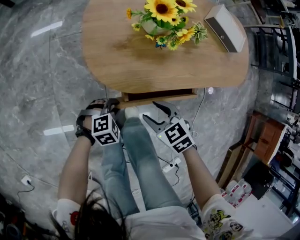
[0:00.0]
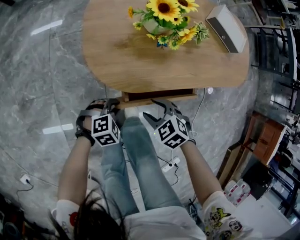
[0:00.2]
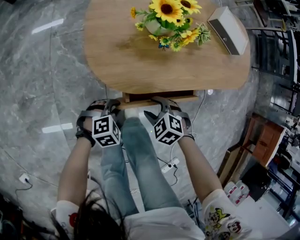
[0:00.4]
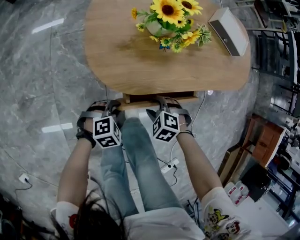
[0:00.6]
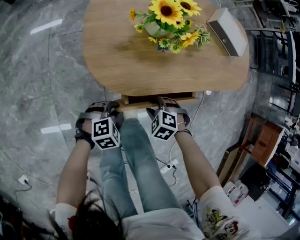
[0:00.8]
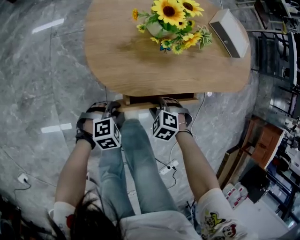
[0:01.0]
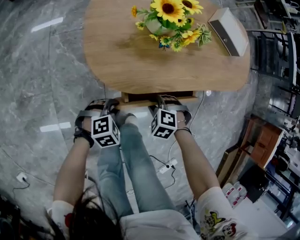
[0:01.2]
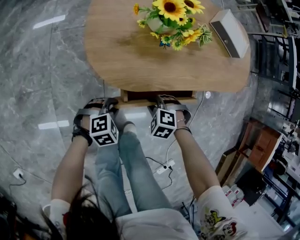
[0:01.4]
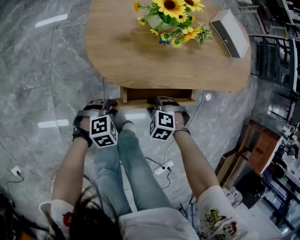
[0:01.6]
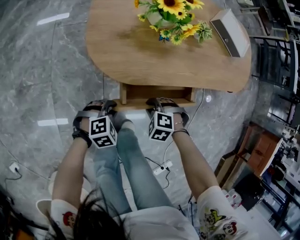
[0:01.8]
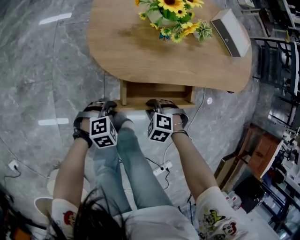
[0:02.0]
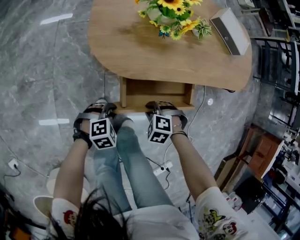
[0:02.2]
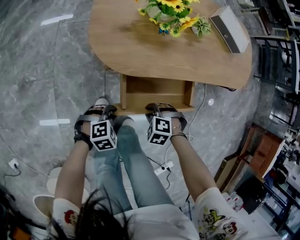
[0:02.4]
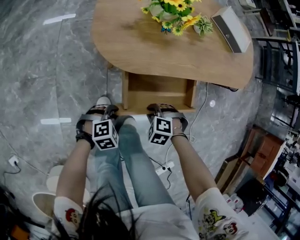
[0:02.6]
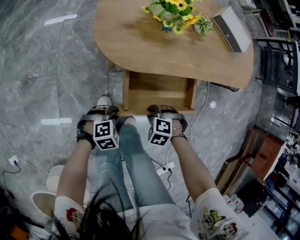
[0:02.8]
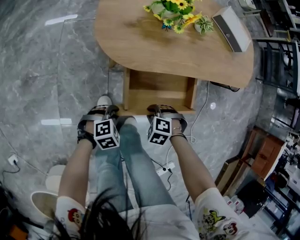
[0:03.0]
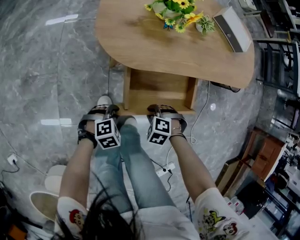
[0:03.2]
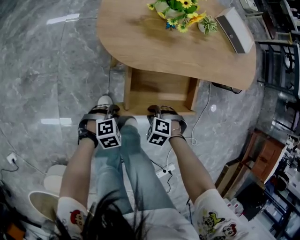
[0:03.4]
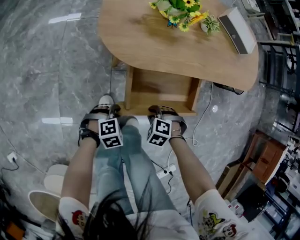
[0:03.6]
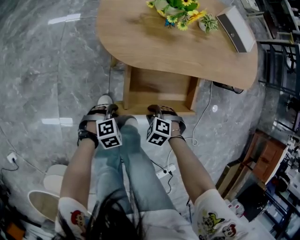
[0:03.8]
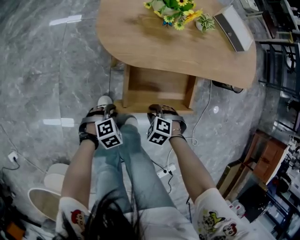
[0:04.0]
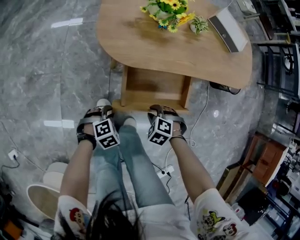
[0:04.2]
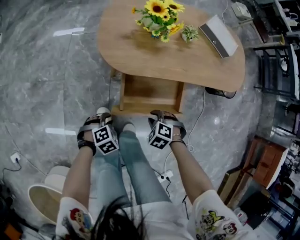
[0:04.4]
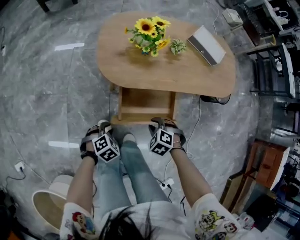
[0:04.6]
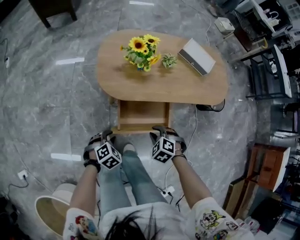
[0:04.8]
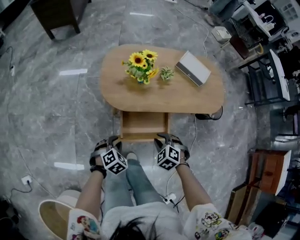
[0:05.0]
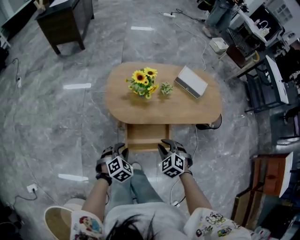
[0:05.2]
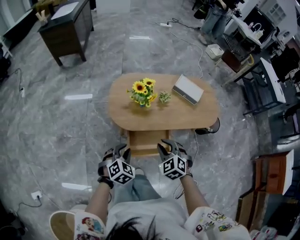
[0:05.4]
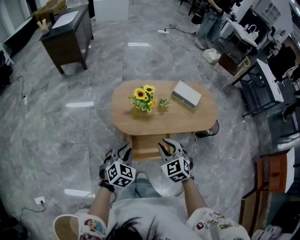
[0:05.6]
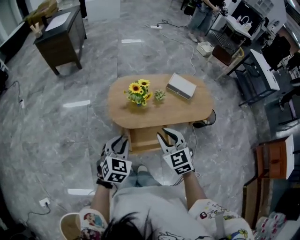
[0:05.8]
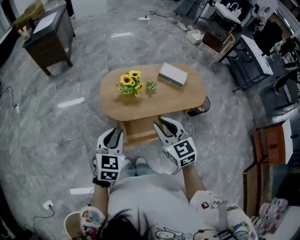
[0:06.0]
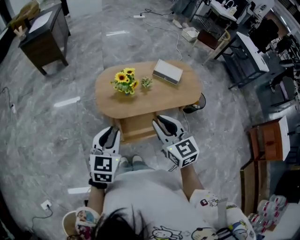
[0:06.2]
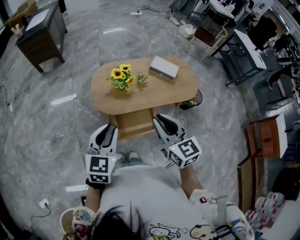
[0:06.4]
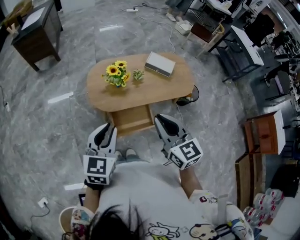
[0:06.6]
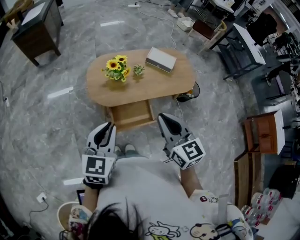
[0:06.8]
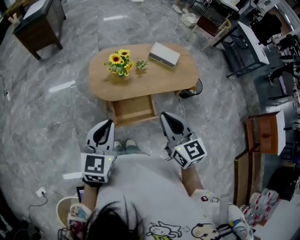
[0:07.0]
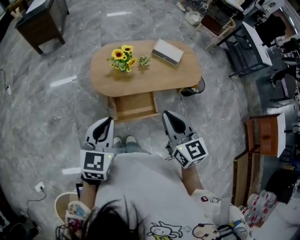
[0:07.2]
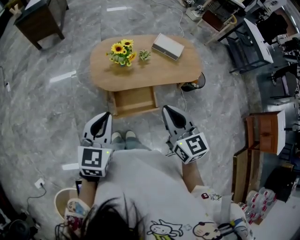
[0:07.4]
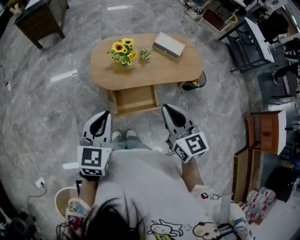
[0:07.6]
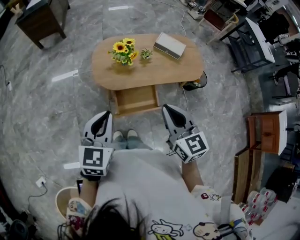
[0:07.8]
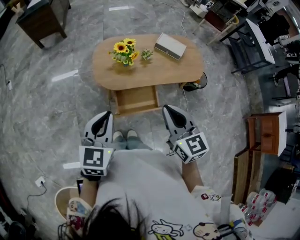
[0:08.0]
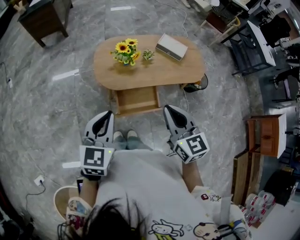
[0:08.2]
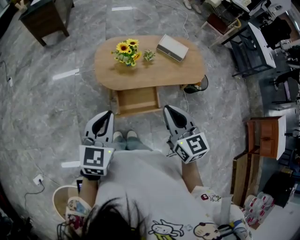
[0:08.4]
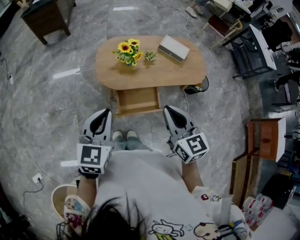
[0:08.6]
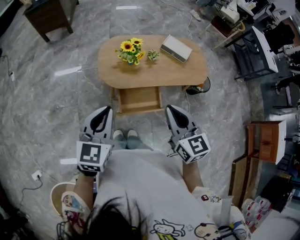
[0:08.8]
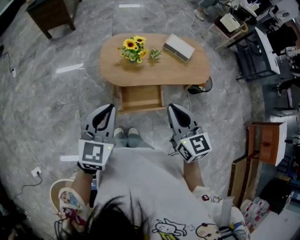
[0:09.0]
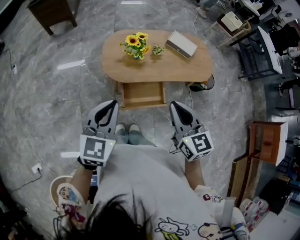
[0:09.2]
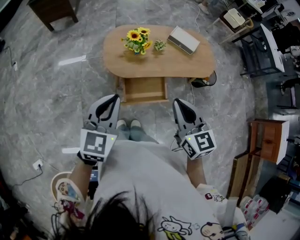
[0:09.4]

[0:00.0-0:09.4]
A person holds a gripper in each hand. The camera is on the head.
0:00.0 to 0:01.6: The right gripper shifts about 10 cm downward, turns by roughly 50 degrees, and closes its fingers.
0:01.6 to 0:03.2: The left gripper ends up approximately 10 cm from where it was, while the right gripper ends up roughly 10 cm from where it was.
0:03.2 to 0:04.8: Both grippers move upward, roughly 15 cm. The left gripper rotates about 20 degrees; the right gripper swivels about 20 degrees.
0:04.8 to 0:06.2: Both grippers travel together upward, roughly 40 cm. The right gripper points its fingers about 50 degrees further upward. The left gripper angles its fingers upward, by roughly 40 degrees.
0:06.2 to 0:07.8: The right gripper is displaced backward by approximately 5 cm.
0:07.8 to 0:09.4: There are only small adjustments of the grippers.

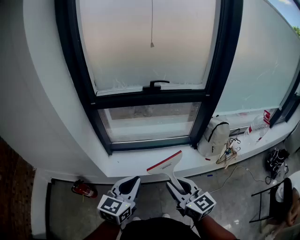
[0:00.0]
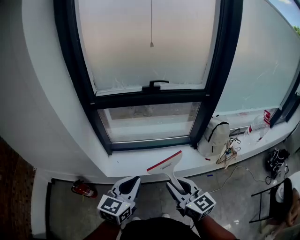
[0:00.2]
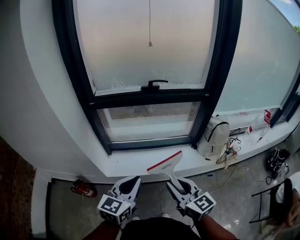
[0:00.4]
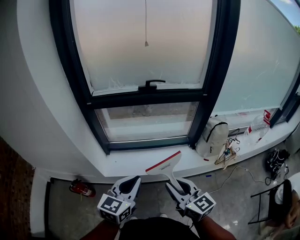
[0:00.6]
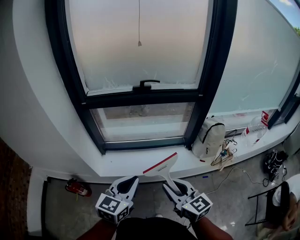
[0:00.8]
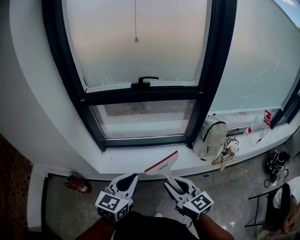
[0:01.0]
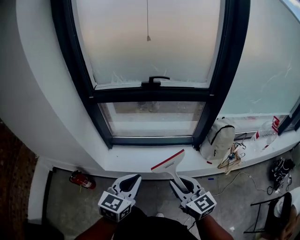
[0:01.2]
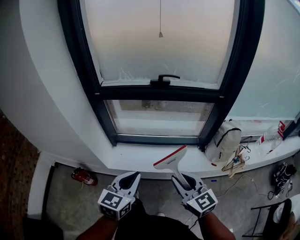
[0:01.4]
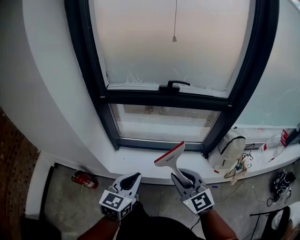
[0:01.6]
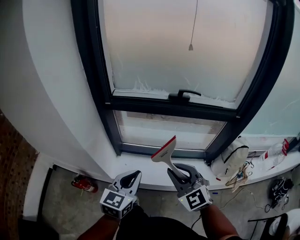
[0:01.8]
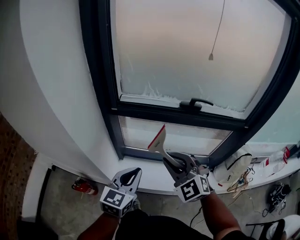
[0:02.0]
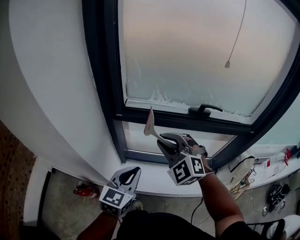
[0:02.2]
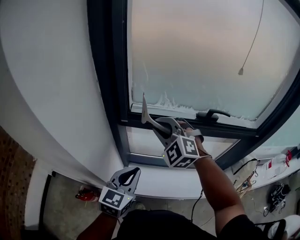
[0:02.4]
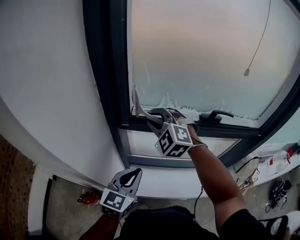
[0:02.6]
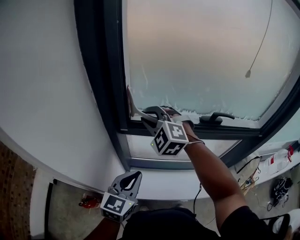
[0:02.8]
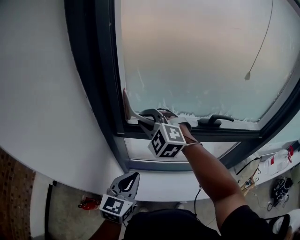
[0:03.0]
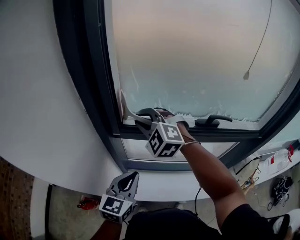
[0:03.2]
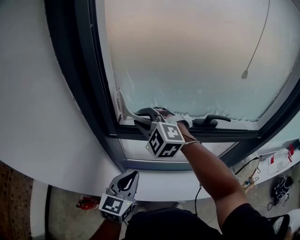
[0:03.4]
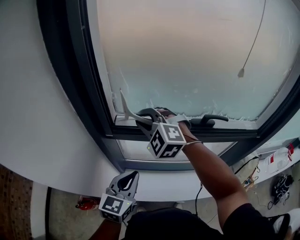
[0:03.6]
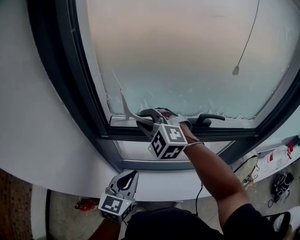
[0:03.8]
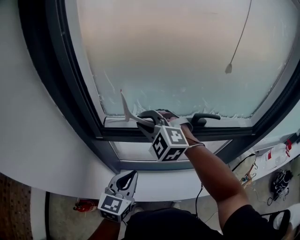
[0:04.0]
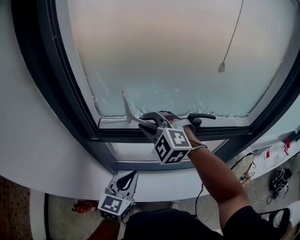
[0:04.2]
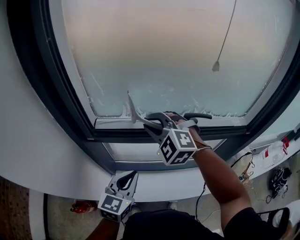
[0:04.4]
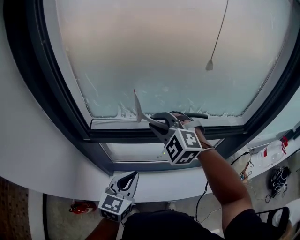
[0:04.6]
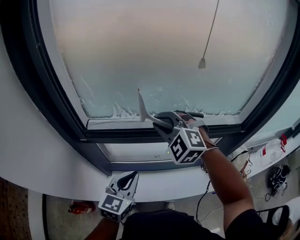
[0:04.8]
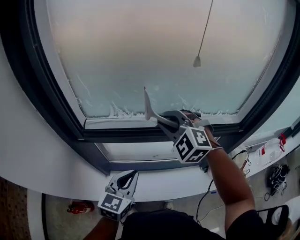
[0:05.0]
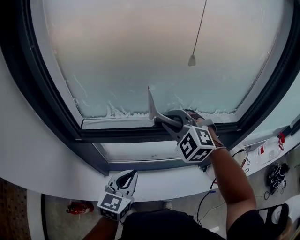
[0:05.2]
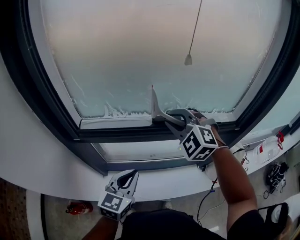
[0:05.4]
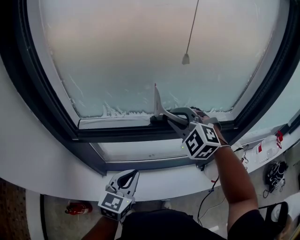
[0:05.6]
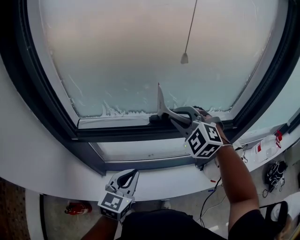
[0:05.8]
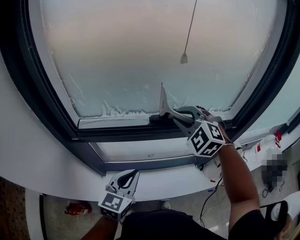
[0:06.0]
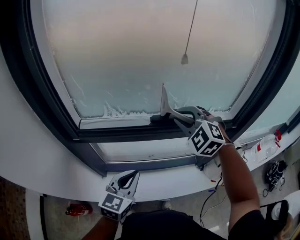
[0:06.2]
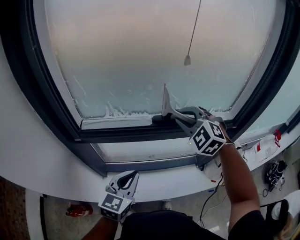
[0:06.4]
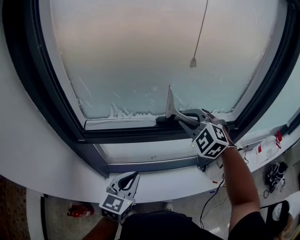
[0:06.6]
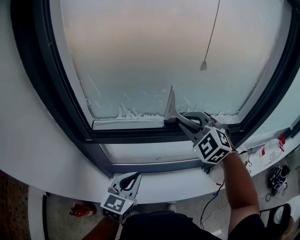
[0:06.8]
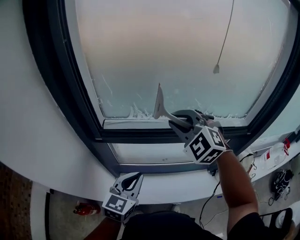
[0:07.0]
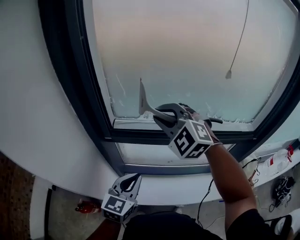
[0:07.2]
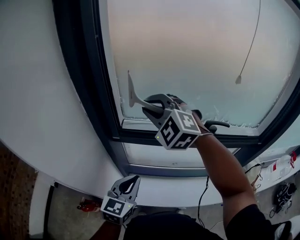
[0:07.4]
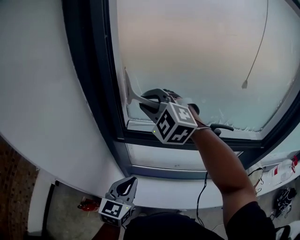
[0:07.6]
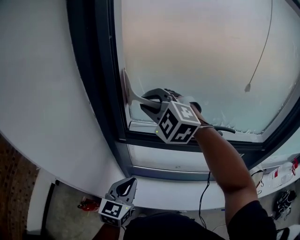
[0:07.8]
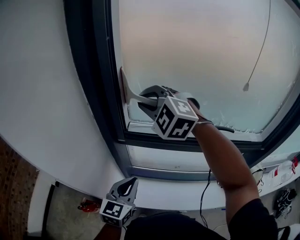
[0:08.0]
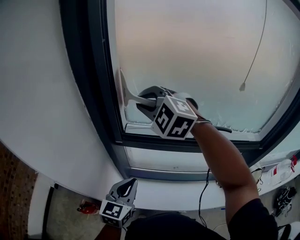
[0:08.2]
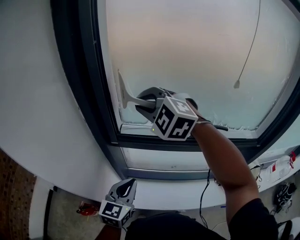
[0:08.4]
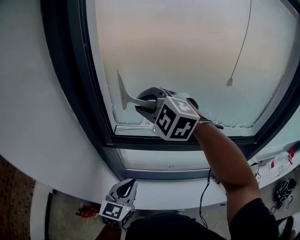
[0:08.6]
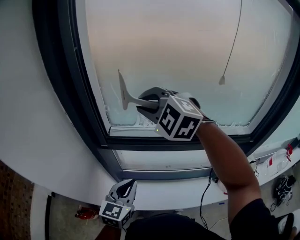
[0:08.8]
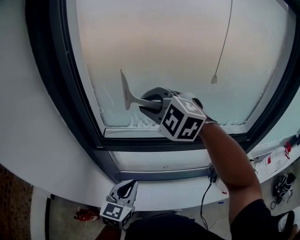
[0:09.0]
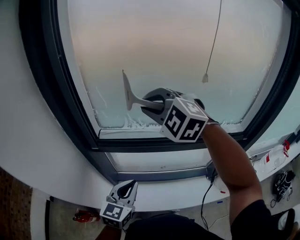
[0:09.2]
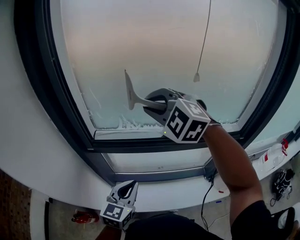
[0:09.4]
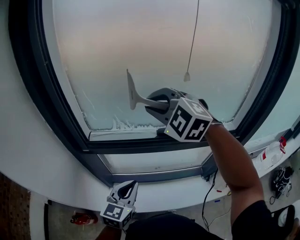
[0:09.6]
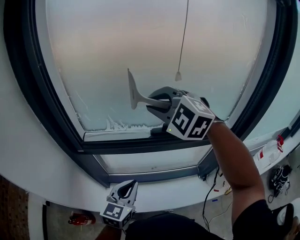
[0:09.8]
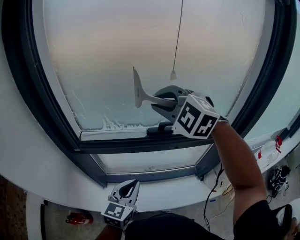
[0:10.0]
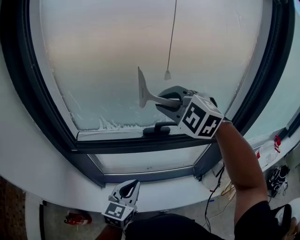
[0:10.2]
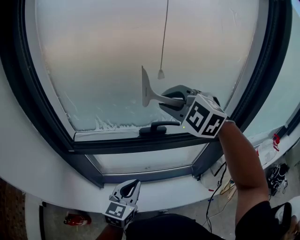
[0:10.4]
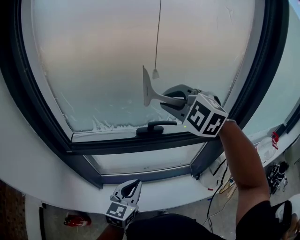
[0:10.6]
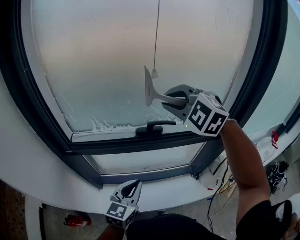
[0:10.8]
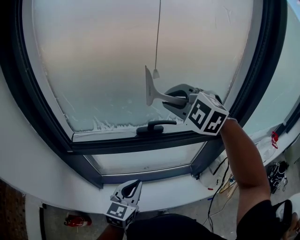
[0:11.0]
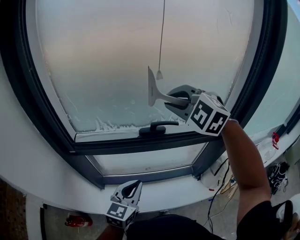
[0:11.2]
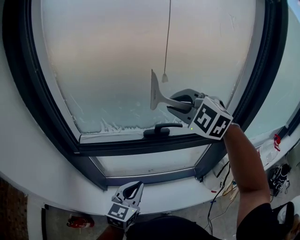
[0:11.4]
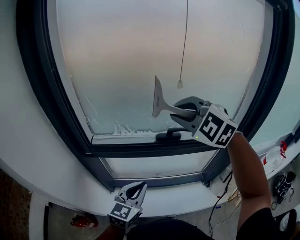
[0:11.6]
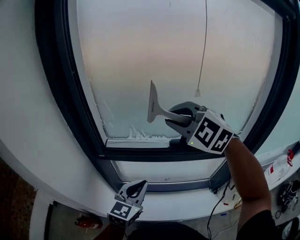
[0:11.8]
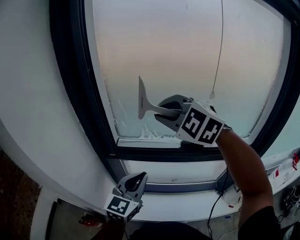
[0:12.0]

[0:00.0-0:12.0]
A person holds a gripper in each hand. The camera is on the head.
0:00.0 to 0:01.6: Both grippers move forward, some 10 cm. The right gripper swivels some 30 degrees.
0:01.6 to 0:03.0: The left gripper goes approximately 35 cm forward and to the left. The right gripper heads forward and to the left, covering roughly 50 cm, and rotates around the line of its fingers by approximately 40 degrees, counterclockwise from behind.
0:03.0 to 0:04.4: Both grippers travel together to the right, roughly 15 cm.
0:04.4 to 0:06.0: The left gripper heads to the right, covering roughly 5 cm; the right gripper travels to the right by about 20 cm.
0:06.0 to 0:07.6: The left gripper goes roughly 20 cm to the left; the right gripper travels to the left by approximately 35 cm, and turns by approximately 20 degrees.
0:07.6 to 0:09.0: The two grippers go approximately 10 cm to the right.
0:09.0 to 0:10.4: The grippers both shift to the right by roughly 20 cm.
0:10.4 to 0:12.0: The right gripper moves to the left, roughly 20 cm; the left gripper travels to the left and upward by about 15 cm.

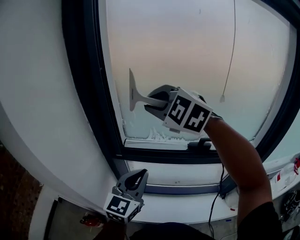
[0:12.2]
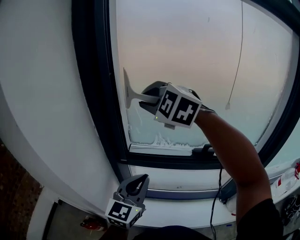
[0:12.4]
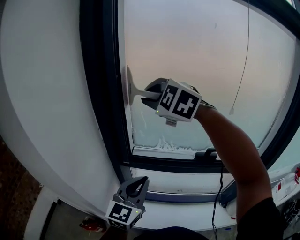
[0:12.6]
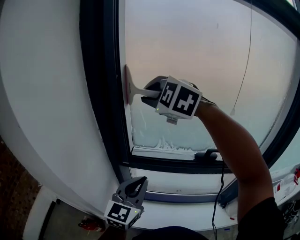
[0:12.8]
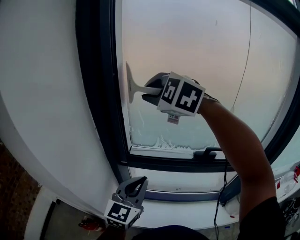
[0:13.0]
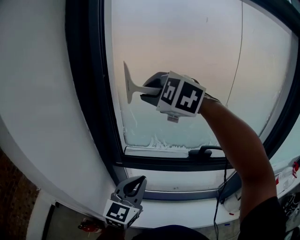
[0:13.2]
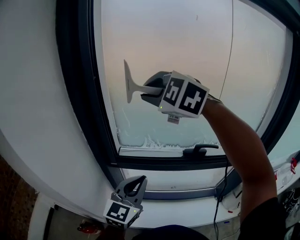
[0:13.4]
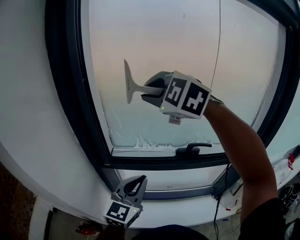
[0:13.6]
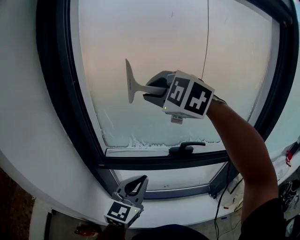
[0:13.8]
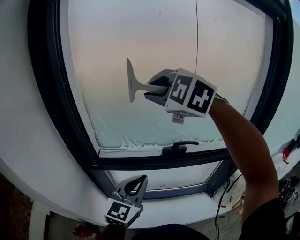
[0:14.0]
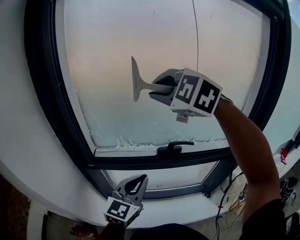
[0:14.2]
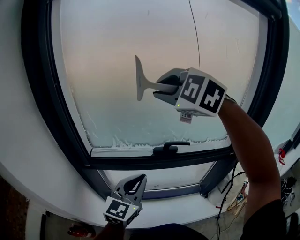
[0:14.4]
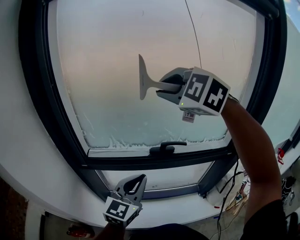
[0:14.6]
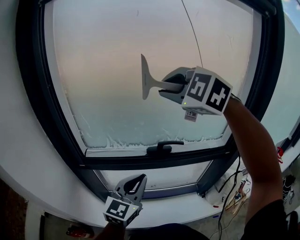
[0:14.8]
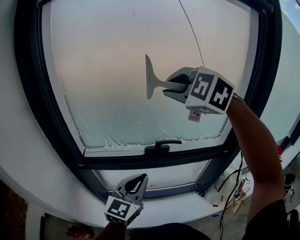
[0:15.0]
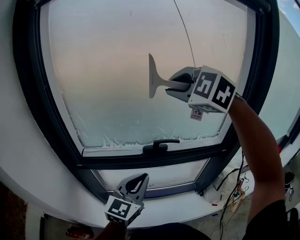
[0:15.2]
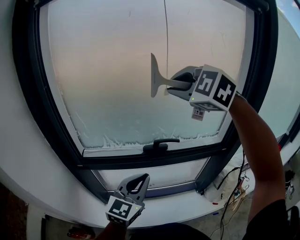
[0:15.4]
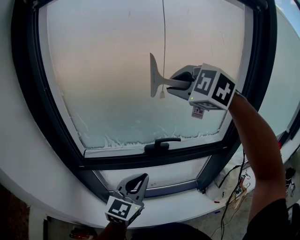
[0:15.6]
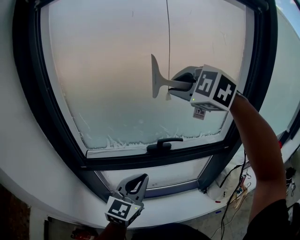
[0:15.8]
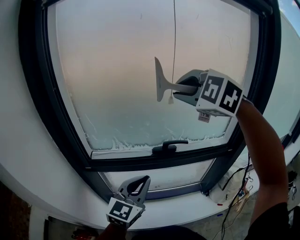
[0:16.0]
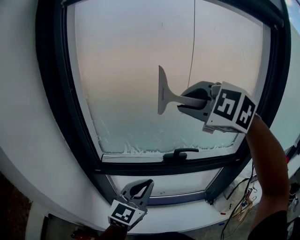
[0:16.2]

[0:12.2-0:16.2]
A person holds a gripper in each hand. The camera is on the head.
0:12.2 to 0:13.6: The right gripper goes about 5 cm upward.
0:13.6 to 0:14.8: The right gripper is displaced to the right by approximately 20 cm, while the left gripper is displaced to the right by about 10 cm.
0:14.8 to 0:16.2: The right gripper moves backward, about 5 cm.
